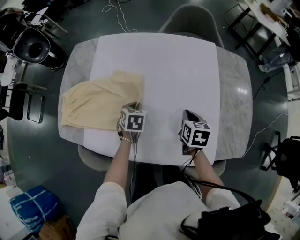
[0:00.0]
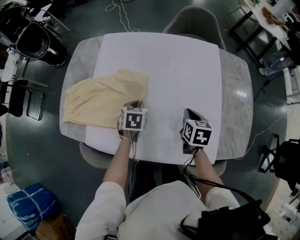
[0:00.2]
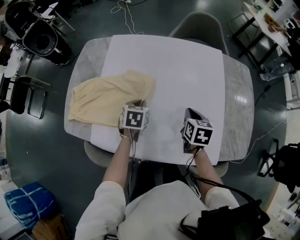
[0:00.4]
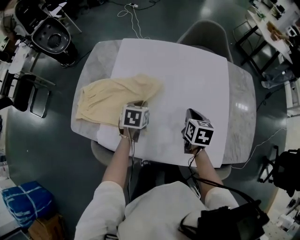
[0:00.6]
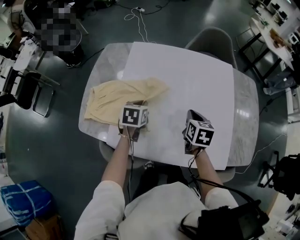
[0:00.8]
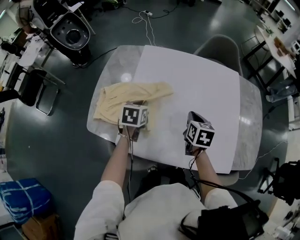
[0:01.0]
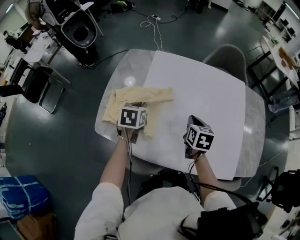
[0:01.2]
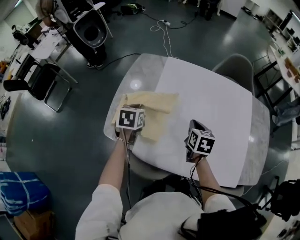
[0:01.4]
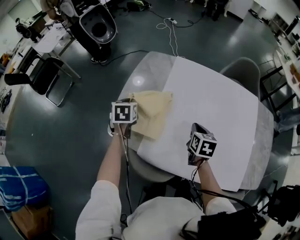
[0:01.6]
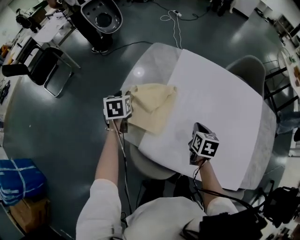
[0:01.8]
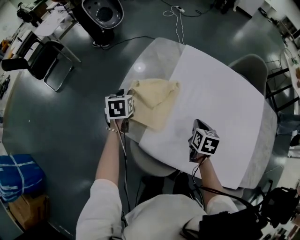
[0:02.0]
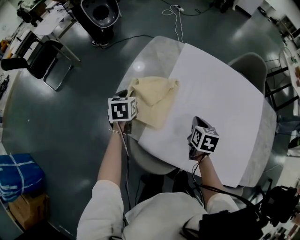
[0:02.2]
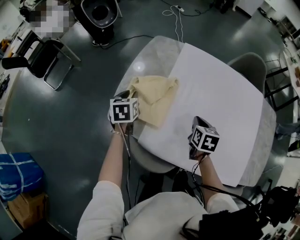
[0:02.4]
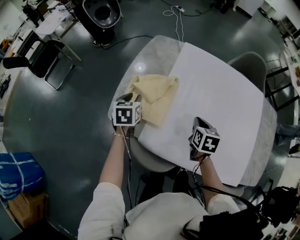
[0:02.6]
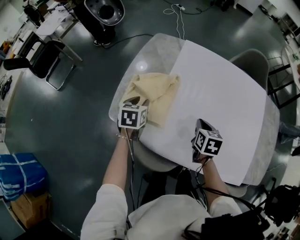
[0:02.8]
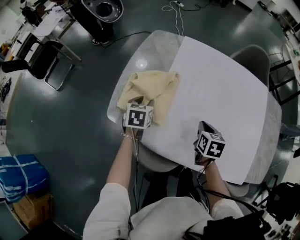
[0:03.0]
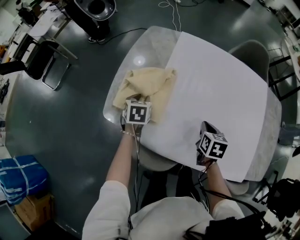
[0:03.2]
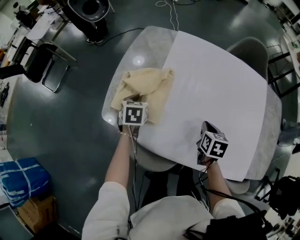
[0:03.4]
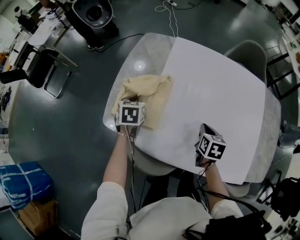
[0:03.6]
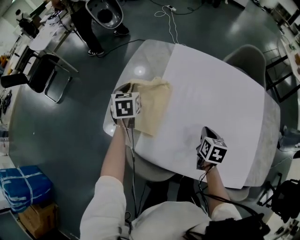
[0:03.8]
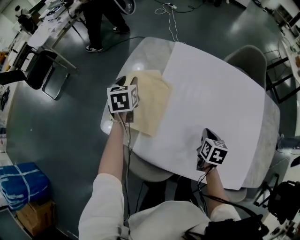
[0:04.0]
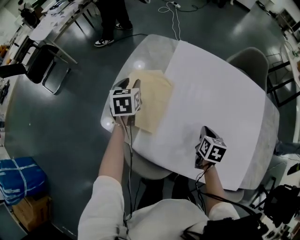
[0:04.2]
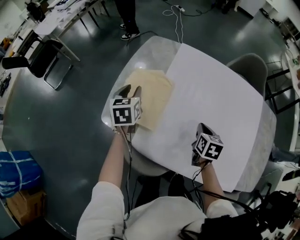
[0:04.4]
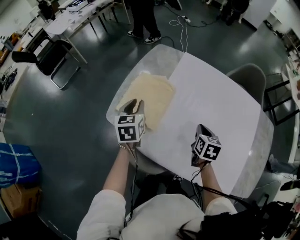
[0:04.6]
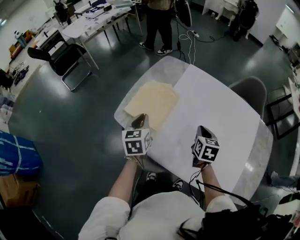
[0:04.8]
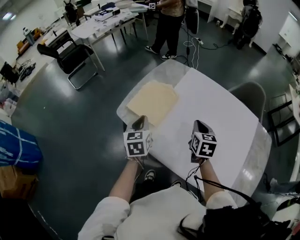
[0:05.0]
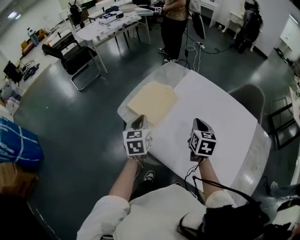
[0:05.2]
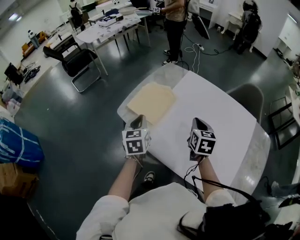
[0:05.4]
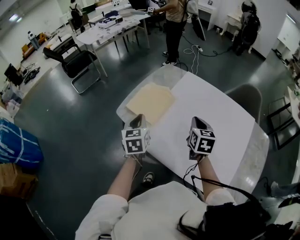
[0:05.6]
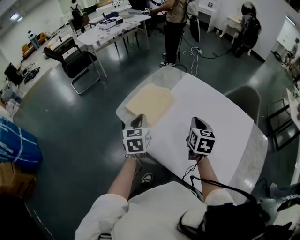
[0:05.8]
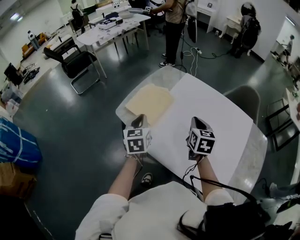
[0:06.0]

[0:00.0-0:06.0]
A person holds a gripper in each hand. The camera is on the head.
0:00.0 to 0:01.6: Both grippers travel together to the left, about 40 cm. The left gripper turns by approximately 20 degrees.
0:01.6 to 0:03.0: The left gripper moves downward and backward, some 10 cm, and opens its fingers. The right gripper heads downward, covering roughly 5 cm.
0:03.0 to 0:04.4: The right gripper ends up approximately 5 cm from where it was. Meanwhile the left gripper shifts some 10 cm upward and forward, and closes, then opens again.
0:04.4 to 0:06.0: The right gripper travels upward by roughly 20 cm, and swivels approximately 30 degrees; the left gripper shifts some 30 cm backward and upward, and closes up.

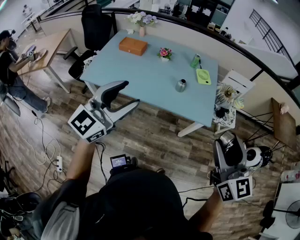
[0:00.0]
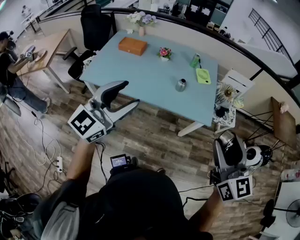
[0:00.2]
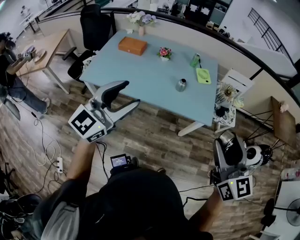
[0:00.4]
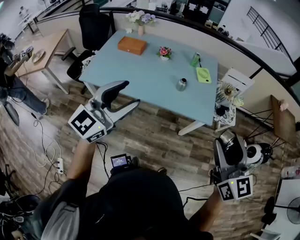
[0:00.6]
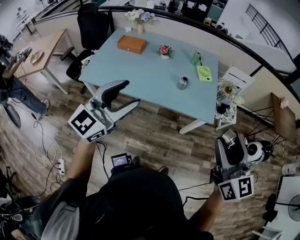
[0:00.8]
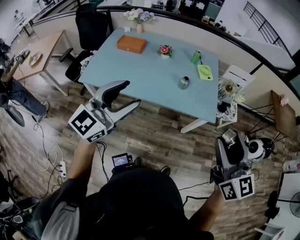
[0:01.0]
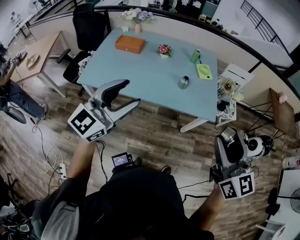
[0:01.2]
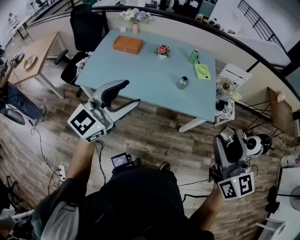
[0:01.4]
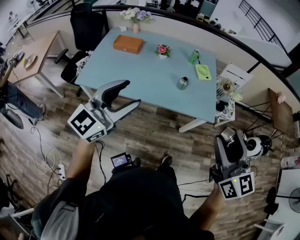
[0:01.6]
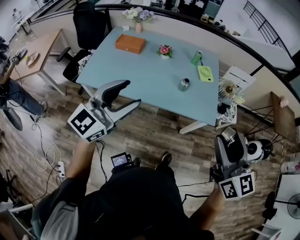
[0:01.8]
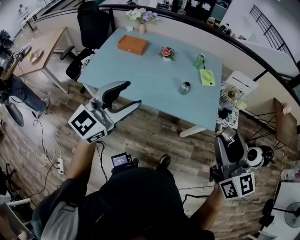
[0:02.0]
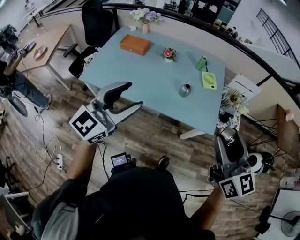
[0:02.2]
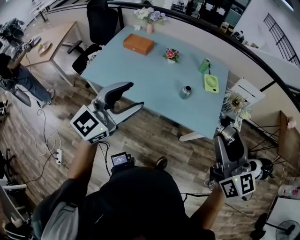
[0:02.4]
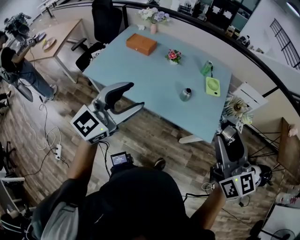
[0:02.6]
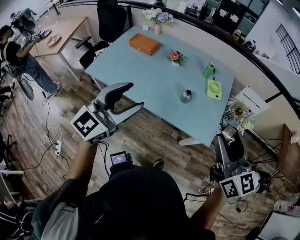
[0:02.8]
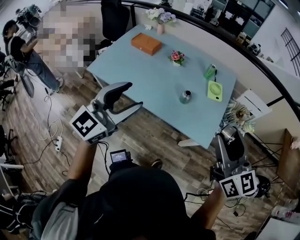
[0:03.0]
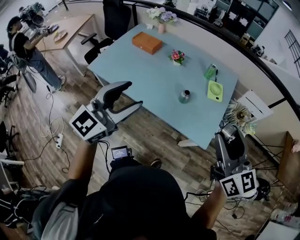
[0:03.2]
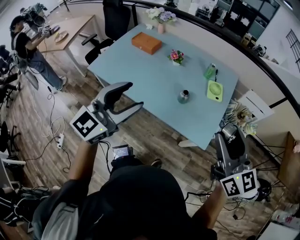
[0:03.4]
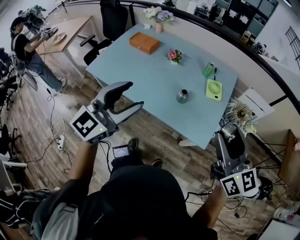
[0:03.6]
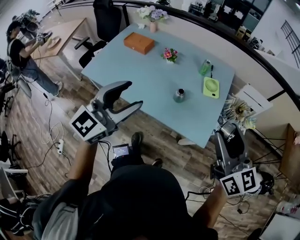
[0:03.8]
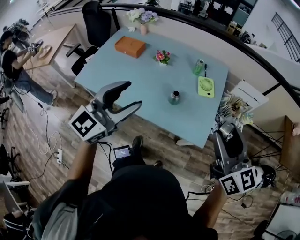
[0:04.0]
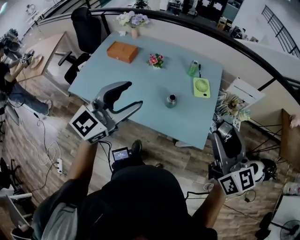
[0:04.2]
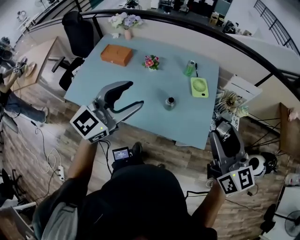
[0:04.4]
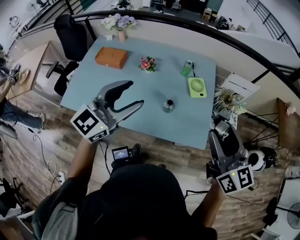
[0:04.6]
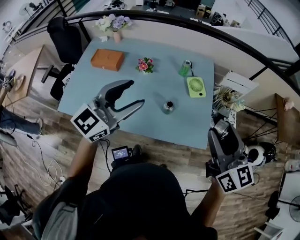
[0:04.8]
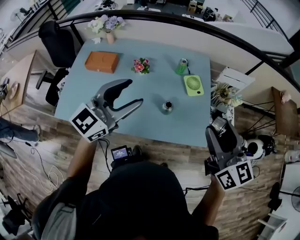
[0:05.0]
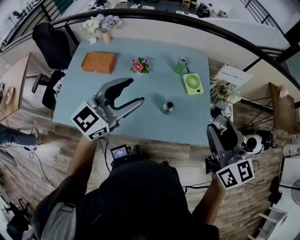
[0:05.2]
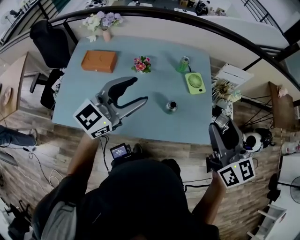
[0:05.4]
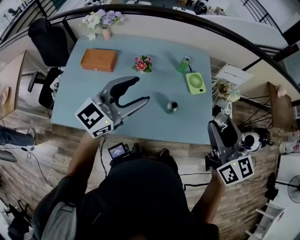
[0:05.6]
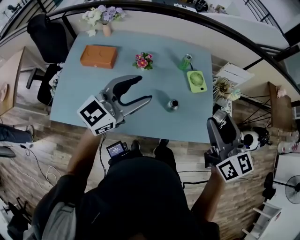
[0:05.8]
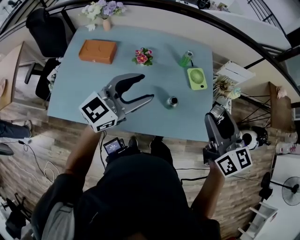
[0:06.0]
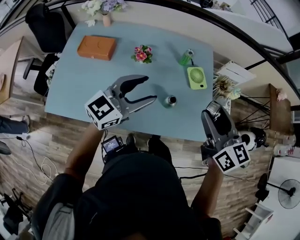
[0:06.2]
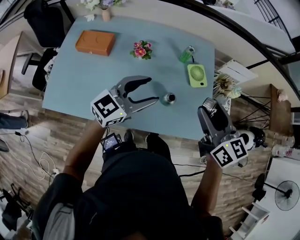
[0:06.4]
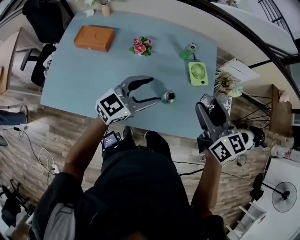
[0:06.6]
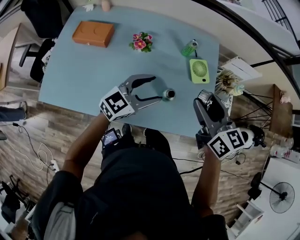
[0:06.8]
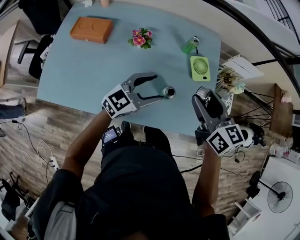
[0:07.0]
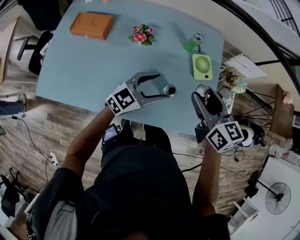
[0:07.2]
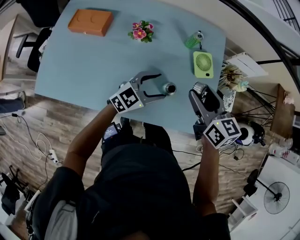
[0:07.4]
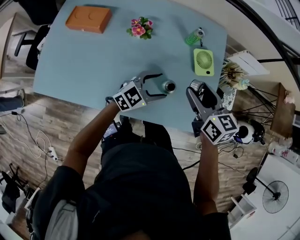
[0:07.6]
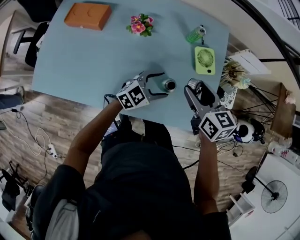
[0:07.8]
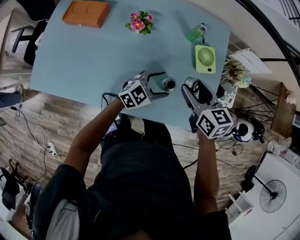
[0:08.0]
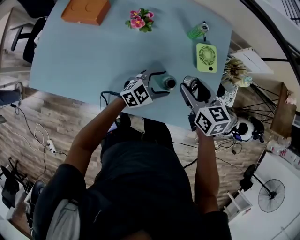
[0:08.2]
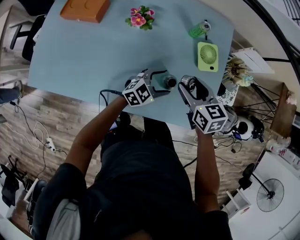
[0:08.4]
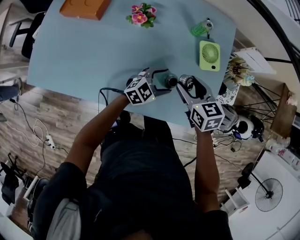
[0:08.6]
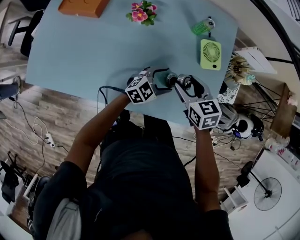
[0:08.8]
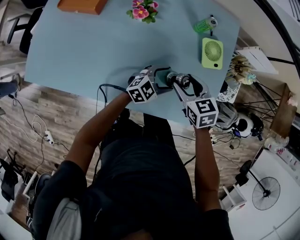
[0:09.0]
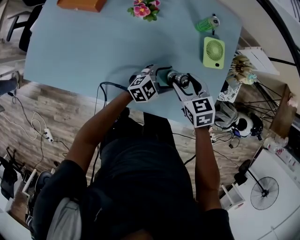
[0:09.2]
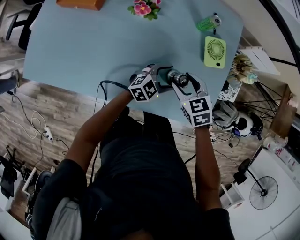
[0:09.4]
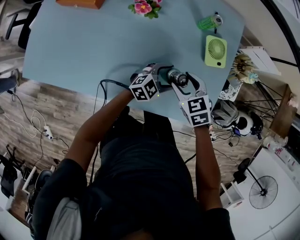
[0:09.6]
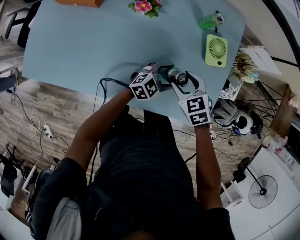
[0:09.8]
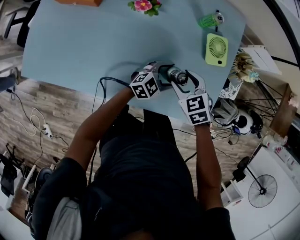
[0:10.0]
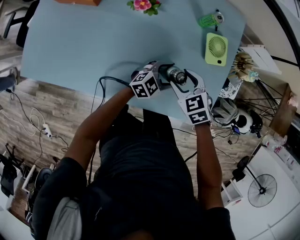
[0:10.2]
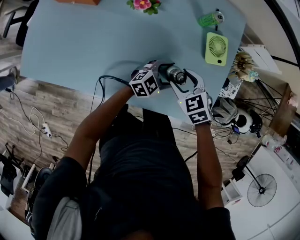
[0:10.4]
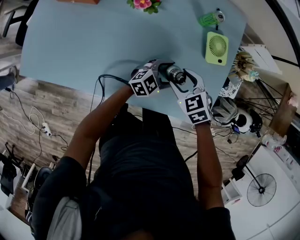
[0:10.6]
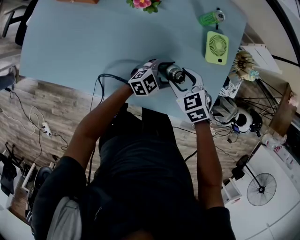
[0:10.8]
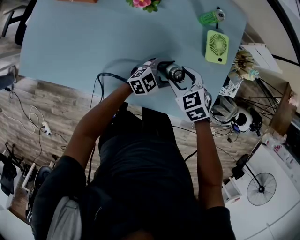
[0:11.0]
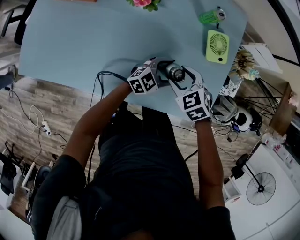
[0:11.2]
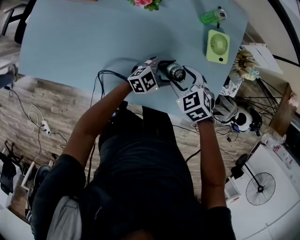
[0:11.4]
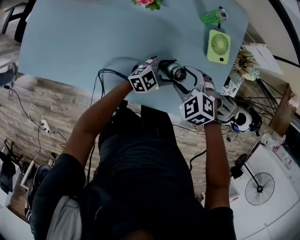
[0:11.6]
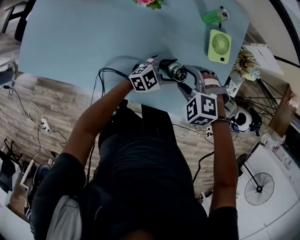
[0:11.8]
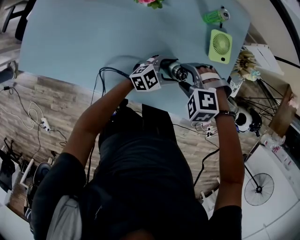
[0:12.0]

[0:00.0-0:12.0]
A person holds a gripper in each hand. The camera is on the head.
0:00.0 to 0:01.6: The grippers both shift to the left by roughly 5 cm.
0:01.6 to 0:03.0: The right gripper heads forward and to the right, covering approximately 20 cm, and turns by roughly 20 degrees; the left gripper goes about 15 cm to the right and forward.
0:03.0 to 0:04.4: The left gripper goes about 15 cm forward. Meanwhile the right gripper shifts approximately 10 cm forward.
0:04.4 to 0:06.0: The right gripper heads to the left and forward, covering about 15 cm. The left gripper moves forward, to the left and downward, some 15 cm.
0:06.0 to 0:07.6: The right gripper is displaced downward and forward by about 20 cm, and rotates approximately 20 degrees, while the left gripper is displaced downward and to the right by approximately 30 cm, and turns by roughly 20 degrees.
0:07.6 to 0:09.0: Both grippers travel together downward, about 15 cm. The right gripper swivels about 20 degrees.
0:09.0 to 0:10.4: The right gripper swivels about 20 degrees.
0:10.4 to 0:12.0: The right gripper twists about 50 degrees counterclockwise, seen from behind.

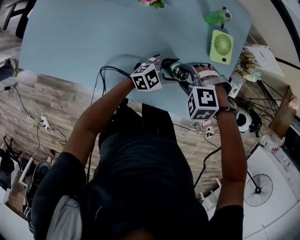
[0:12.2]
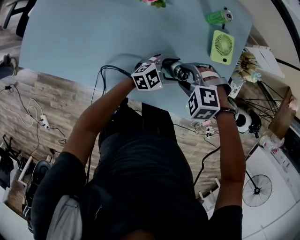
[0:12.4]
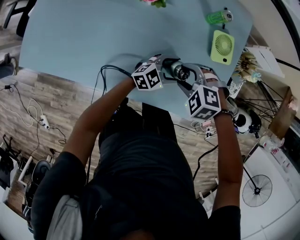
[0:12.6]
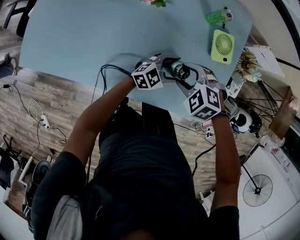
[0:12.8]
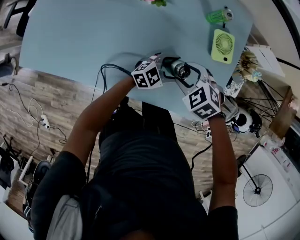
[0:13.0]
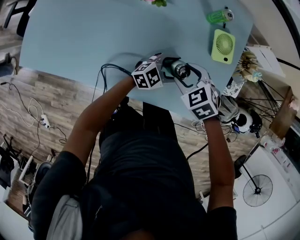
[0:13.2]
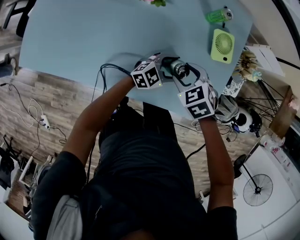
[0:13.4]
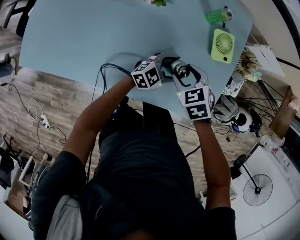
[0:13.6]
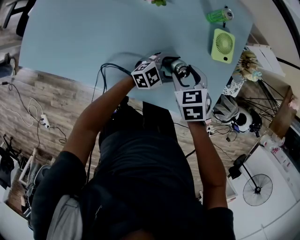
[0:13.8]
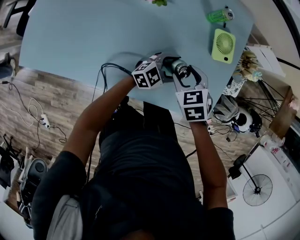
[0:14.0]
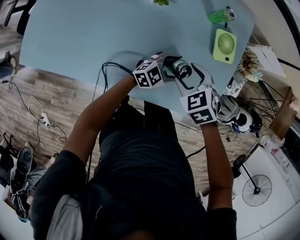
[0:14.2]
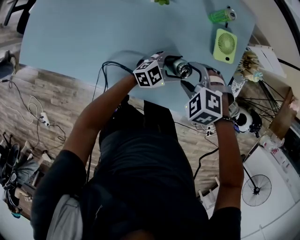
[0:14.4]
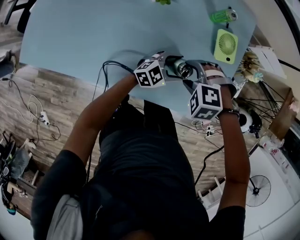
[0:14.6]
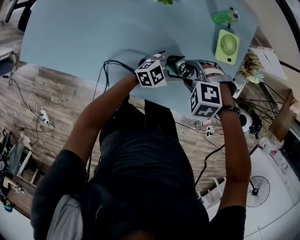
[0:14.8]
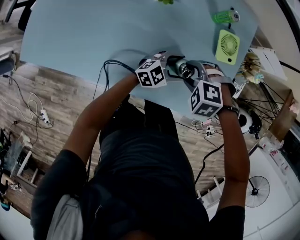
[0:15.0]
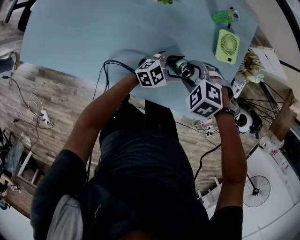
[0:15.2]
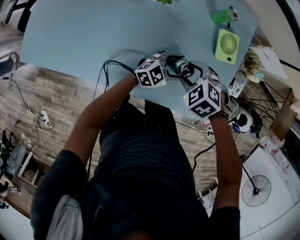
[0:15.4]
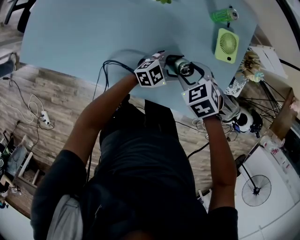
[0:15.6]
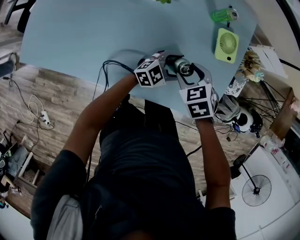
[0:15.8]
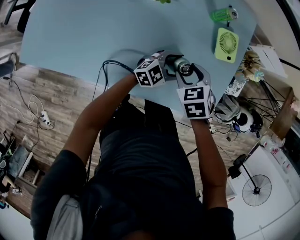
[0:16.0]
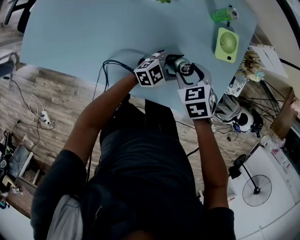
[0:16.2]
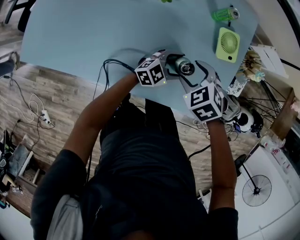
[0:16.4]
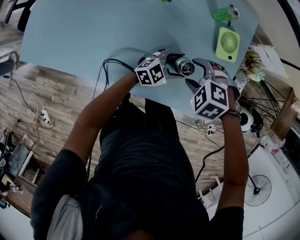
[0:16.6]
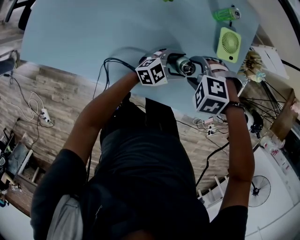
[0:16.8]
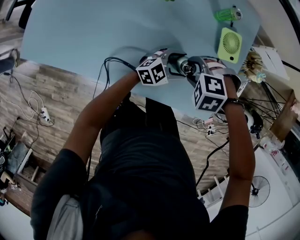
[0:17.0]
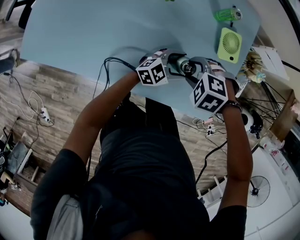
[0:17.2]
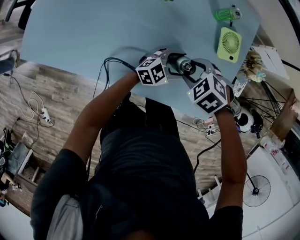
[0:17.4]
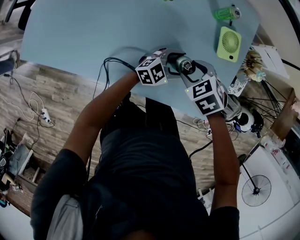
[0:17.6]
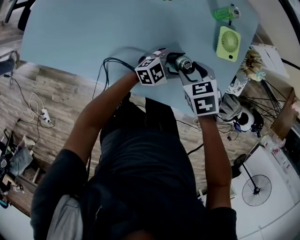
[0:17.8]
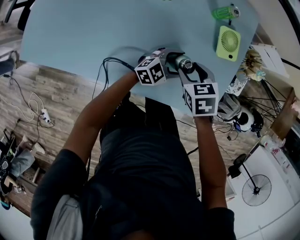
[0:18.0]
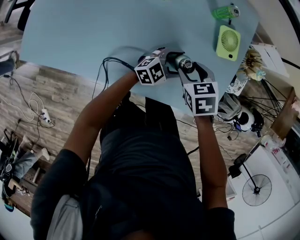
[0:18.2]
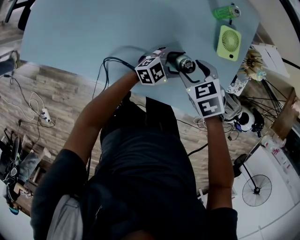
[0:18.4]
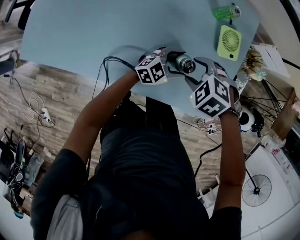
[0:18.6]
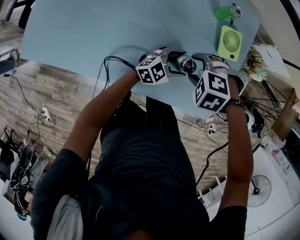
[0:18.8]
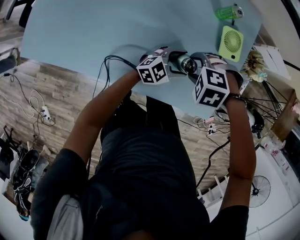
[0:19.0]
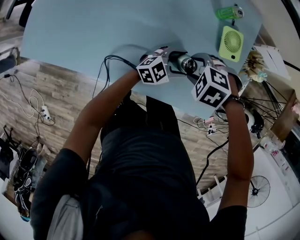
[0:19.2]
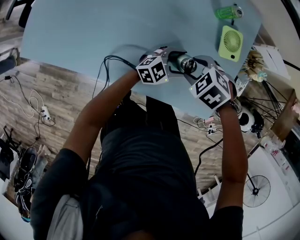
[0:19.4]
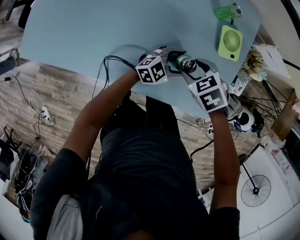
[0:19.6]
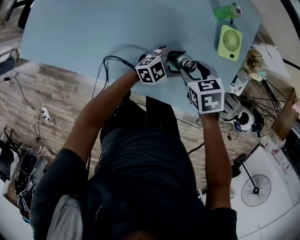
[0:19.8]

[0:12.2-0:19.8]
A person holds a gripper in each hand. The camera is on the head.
0:12.2 to 0:13.8: The right gripper rotates around the line of its fingers by about 70 degrees, clockwise from behind.
0:13.8 to 0:15.2: The right gripper twists roughly 50 degrees counterclockwise, seen from behind.
0:16.8 to 0:18.2: The right gripper rolls clockwise, seen from behind, by approximately 60 degrees.
